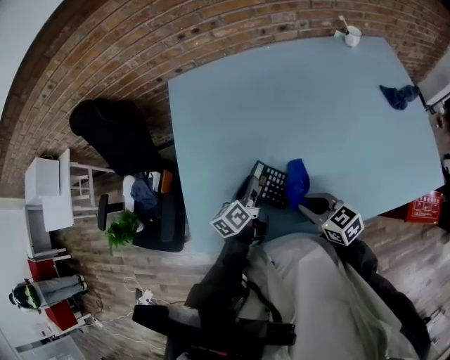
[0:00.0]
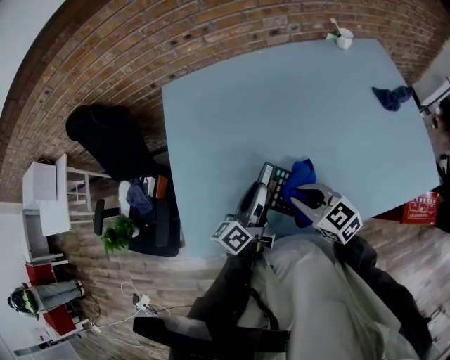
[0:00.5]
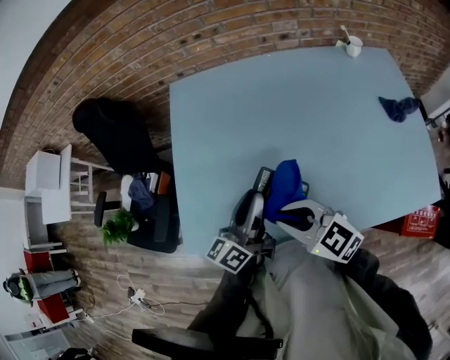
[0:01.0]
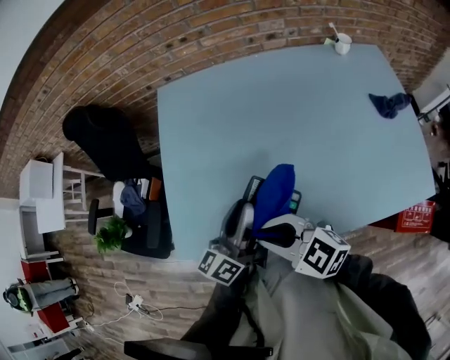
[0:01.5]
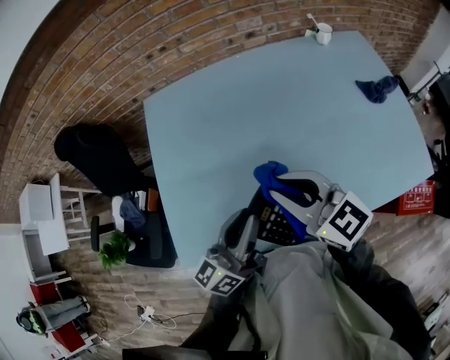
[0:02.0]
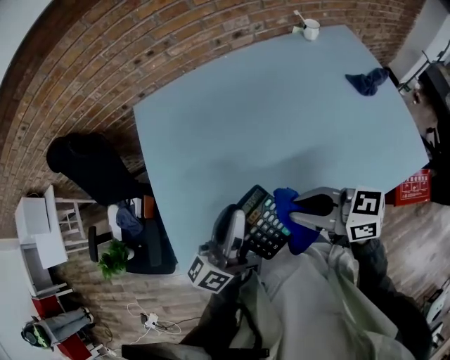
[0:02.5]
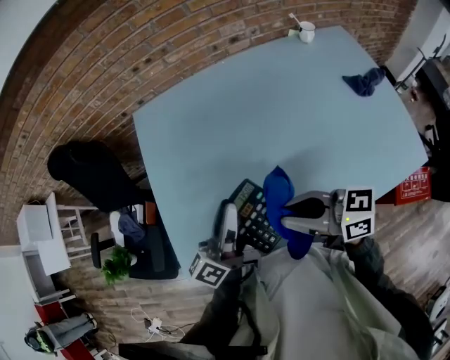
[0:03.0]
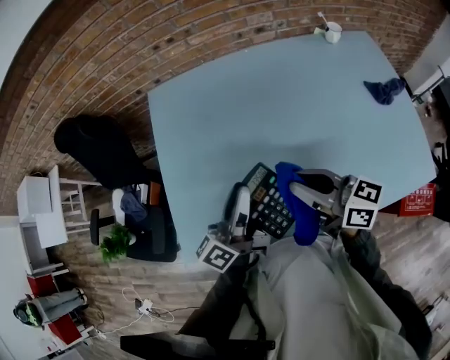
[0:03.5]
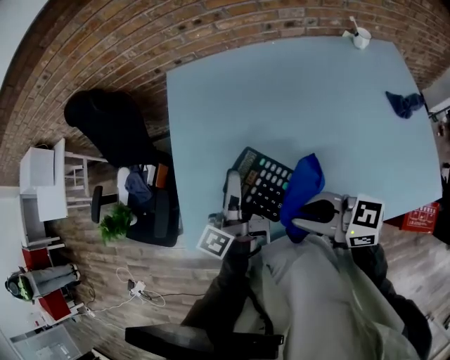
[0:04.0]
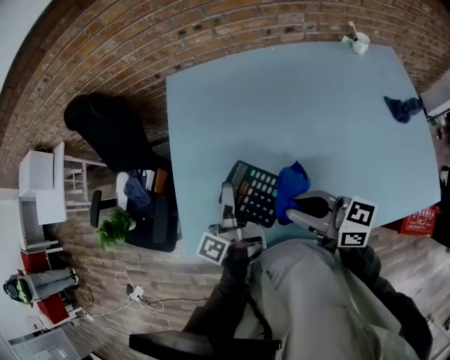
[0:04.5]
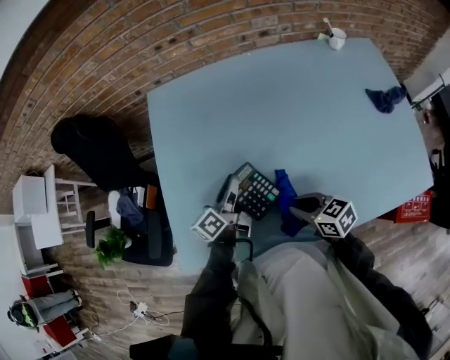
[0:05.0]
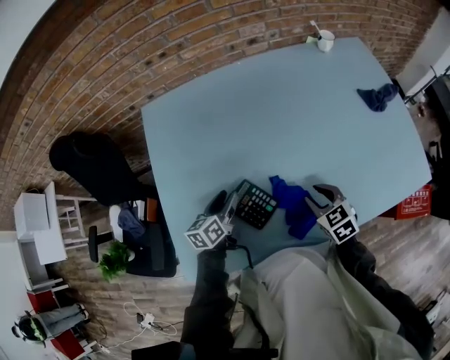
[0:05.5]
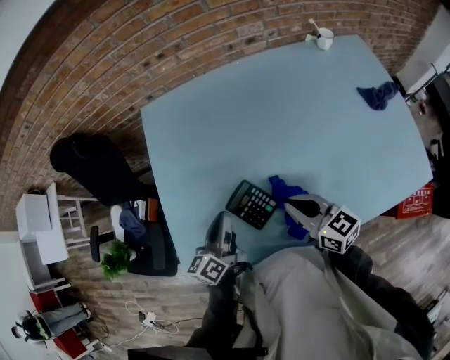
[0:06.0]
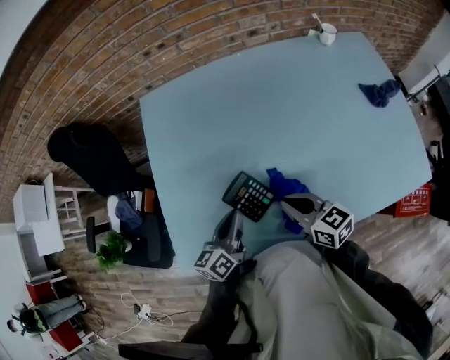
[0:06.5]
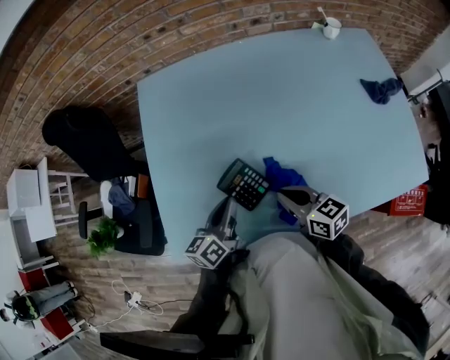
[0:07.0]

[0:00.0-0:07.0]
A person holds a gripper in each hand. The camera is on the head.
0:00.0 to 0:02.0: The right gripper travels upward by roughly 20 cm, and changes its angle by roughly 30 degrees. The left gripper travels upward and backward by about 20 cm, and swivels some 40 degrees.
0:02.0 to 0:03.5: The right gripper reaches some 5 cm backward, then returns, and changes its angle by some 30 degrees, while the left gripper shifts about 5 cm forward, and turns by some 20 degrees.
0:03.5 to 0:05.0: The right gripper heads downward, covering some 20 cm, and angles its fingers downward, by roughly 30 degrees. The left gripper shifts roughly 15 cm downward and forward.
0:05.0 to 0:07.0: The left gripper moves backward, about 10 cm, and opens, then closes again.

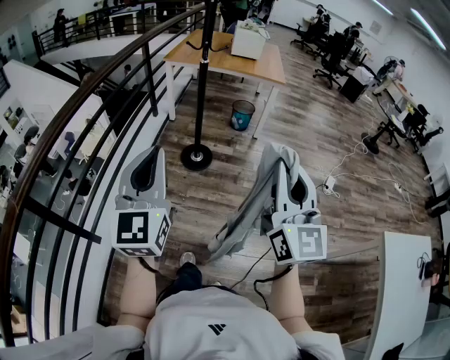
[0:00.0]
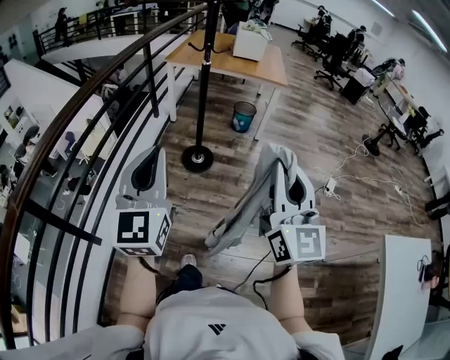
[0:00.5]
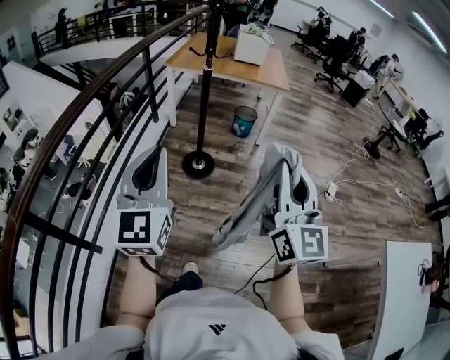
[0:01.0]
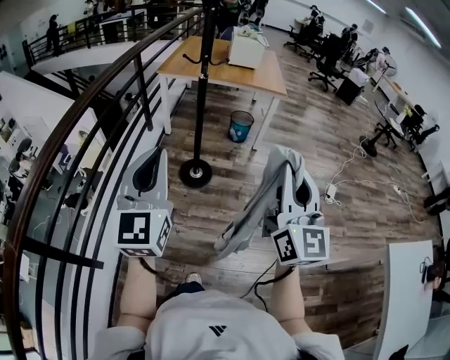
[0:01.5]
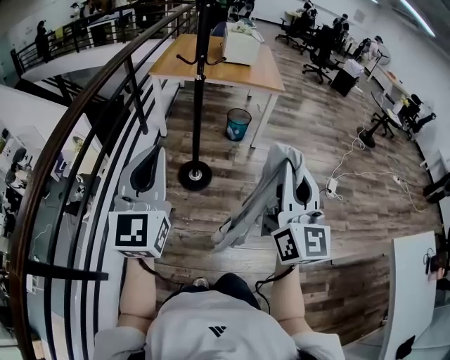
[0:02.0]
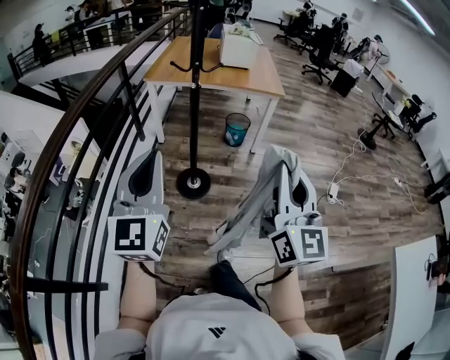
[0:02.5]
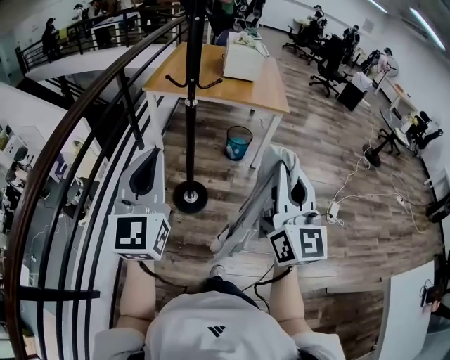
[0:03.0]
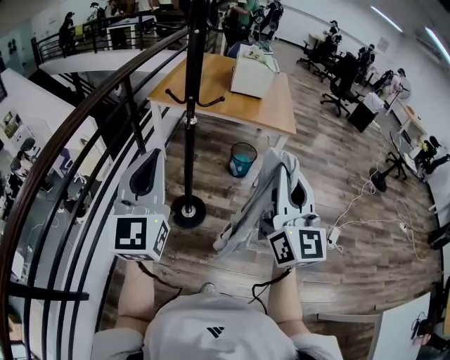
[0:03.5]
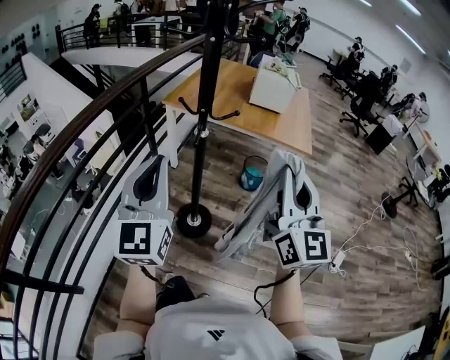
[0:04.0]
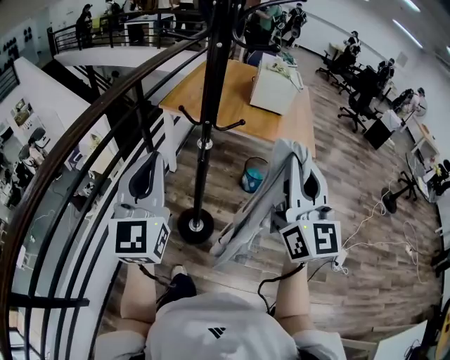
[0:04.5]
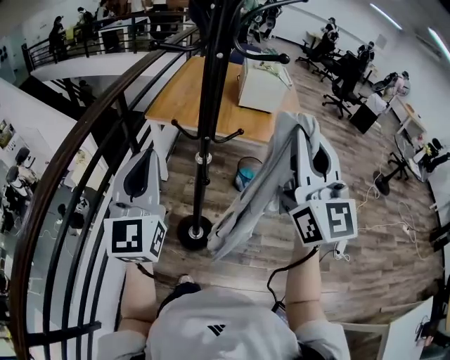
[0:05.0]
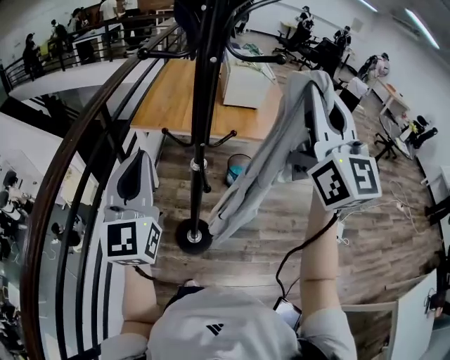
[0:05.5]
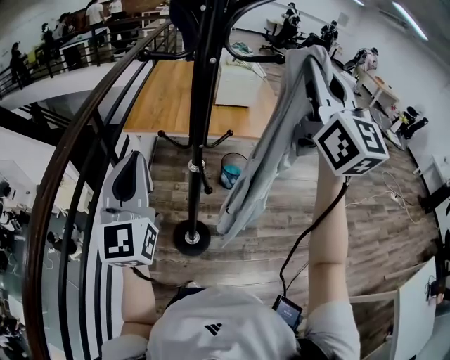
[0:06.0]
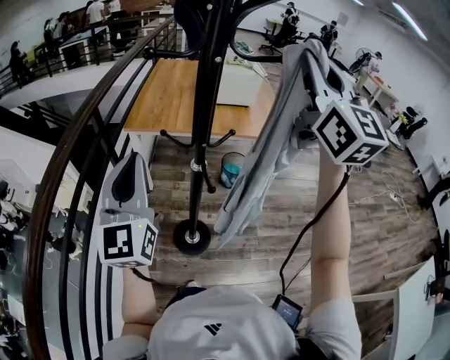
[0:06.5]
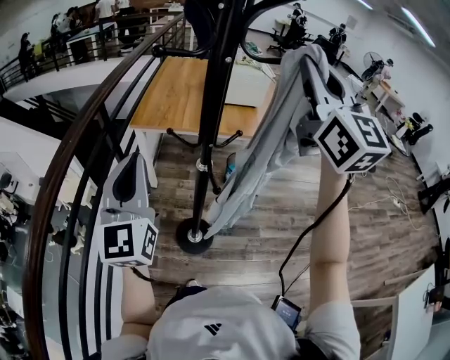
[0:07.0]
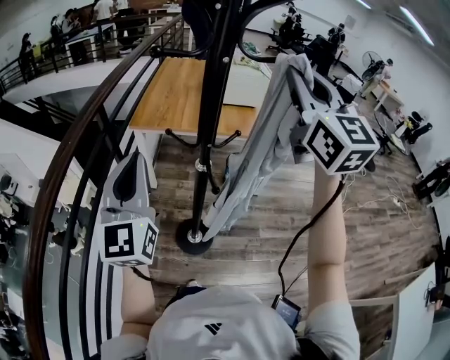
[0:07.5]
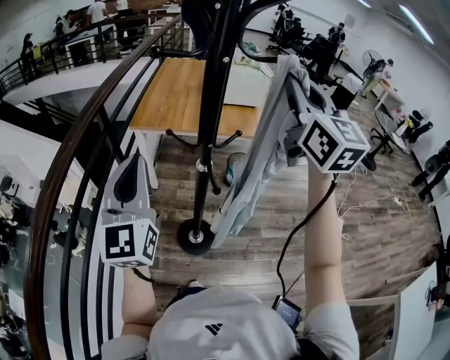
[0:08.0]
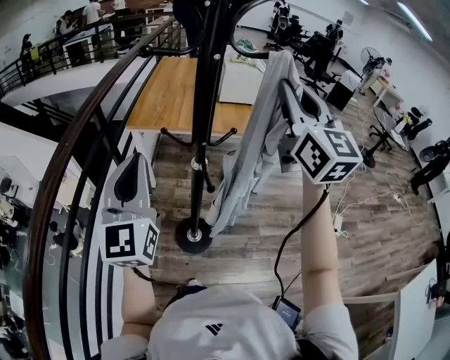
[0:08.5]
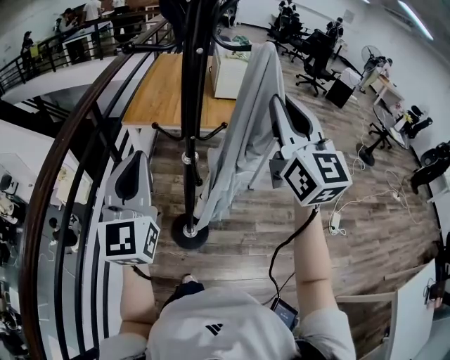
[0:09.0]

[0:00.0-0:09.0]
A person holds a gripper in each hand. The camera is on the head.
0:00.0 to 0:02.0: The two grippers go approximately 20 cm forward.
0:02.0 to 0:04.5: The two grippers go about 35 cm forward.
0:04.5 to 0:07.0: The right gripper moves upward and forward, approximately 20 cm, while the left gripper goes roughly 15 cm forward and to the left.
0:07.0 to 0:09.0: The left gripper is displaced to the right by some 5 cm. The right gripper travels downward by some 10 cm.

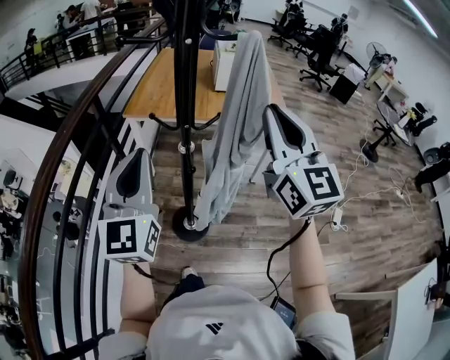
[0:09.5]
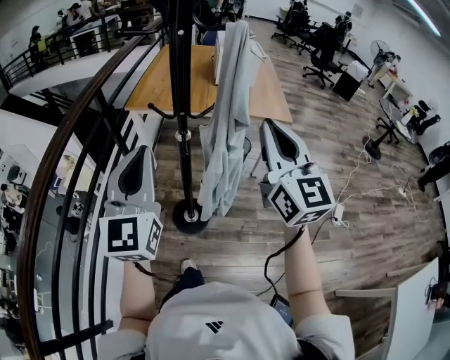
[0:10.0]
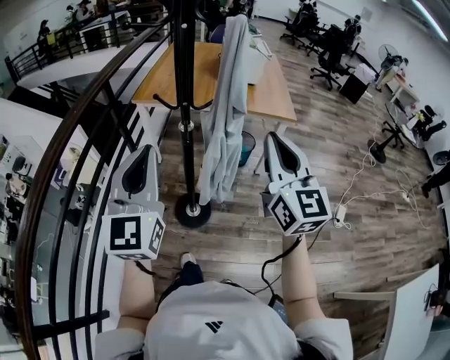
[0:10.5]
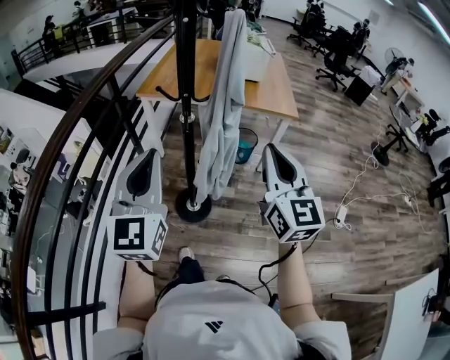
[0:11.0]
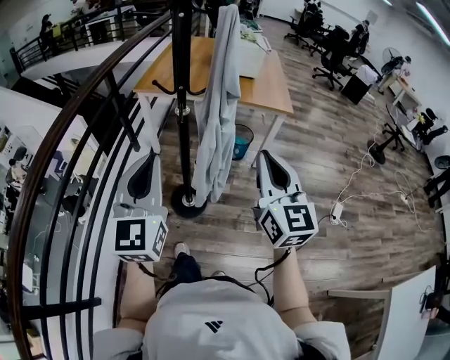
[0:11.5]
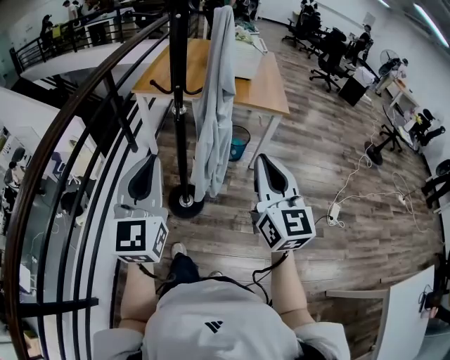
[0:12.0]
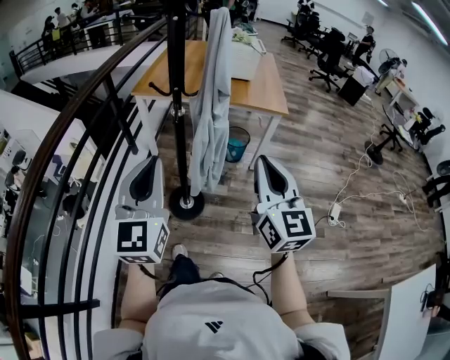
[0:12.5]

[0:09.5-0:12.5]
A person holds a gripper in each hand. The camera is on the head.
0:09.5 to 0:11.0: The left gripper heads backward, covering approximately 10 cm. Meanwhile the right gripper heads backward and downward, covering about 15 cm.
0:11.0 to 0:12.5: The left gripper ends up approximately 5 cm from where it was, while the right gripper goes approximately 5 cm backward.

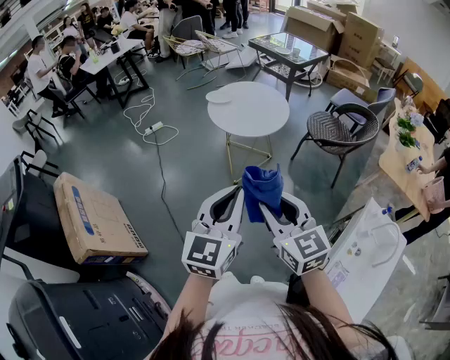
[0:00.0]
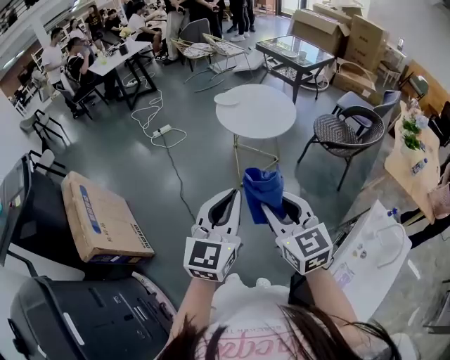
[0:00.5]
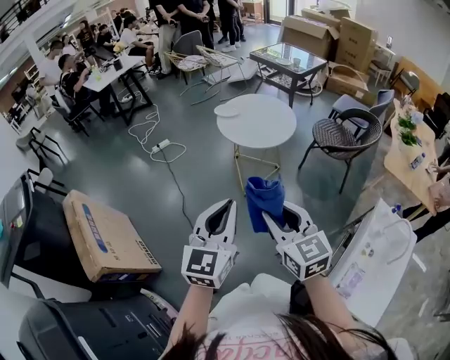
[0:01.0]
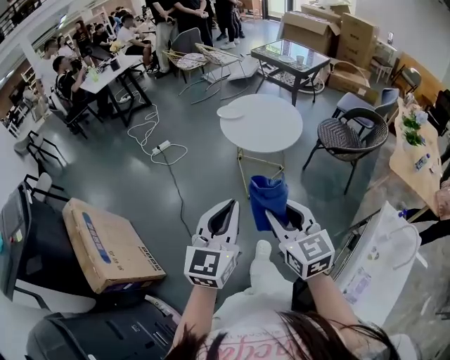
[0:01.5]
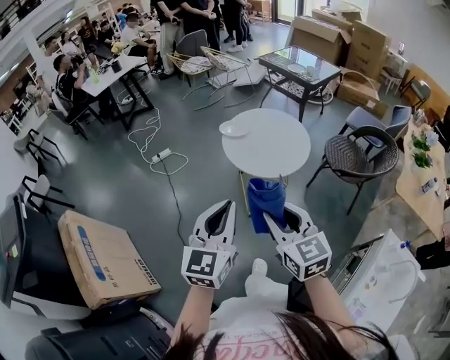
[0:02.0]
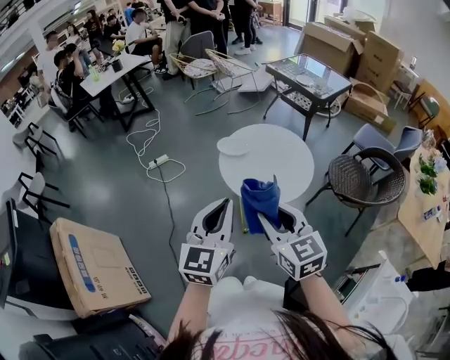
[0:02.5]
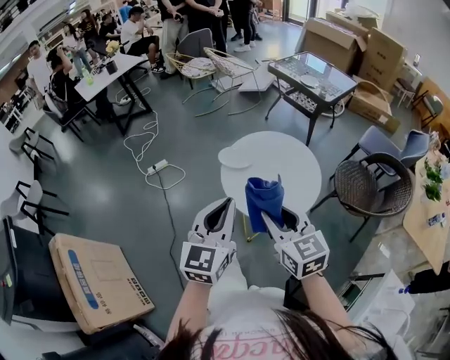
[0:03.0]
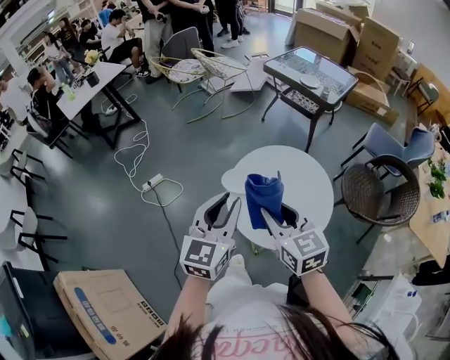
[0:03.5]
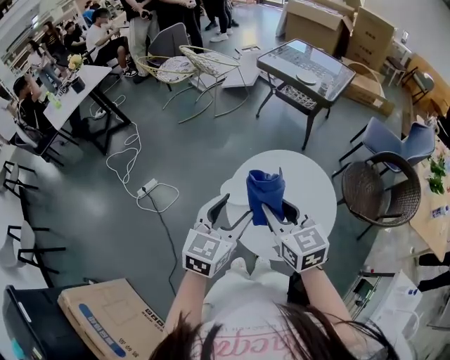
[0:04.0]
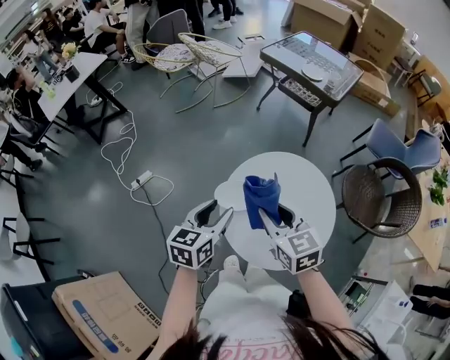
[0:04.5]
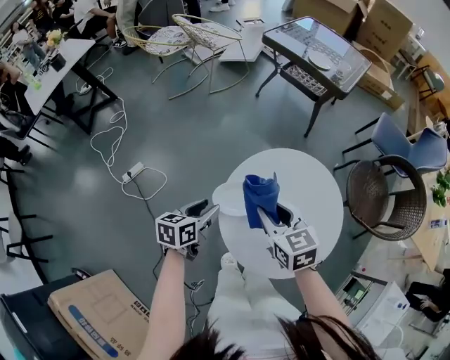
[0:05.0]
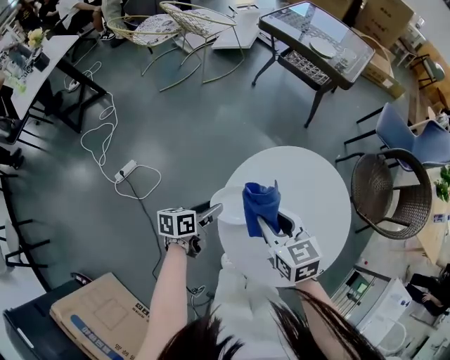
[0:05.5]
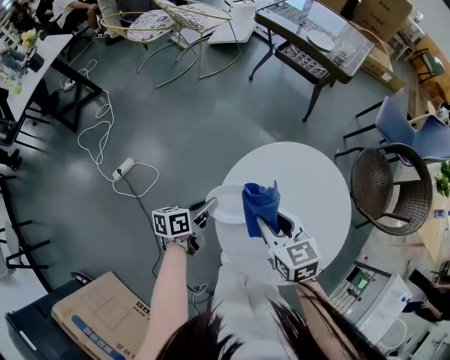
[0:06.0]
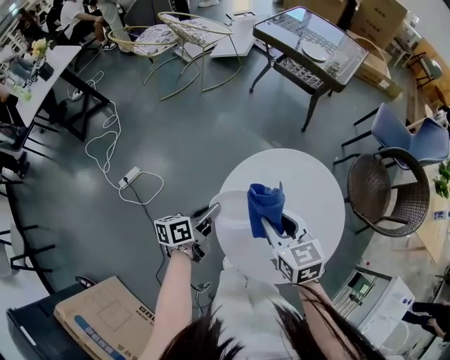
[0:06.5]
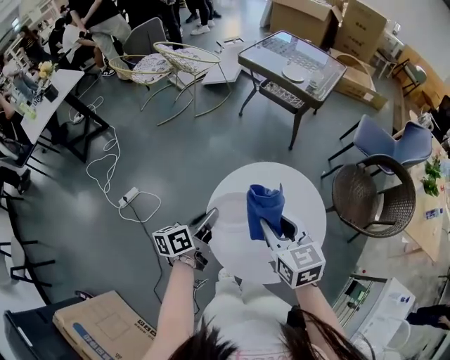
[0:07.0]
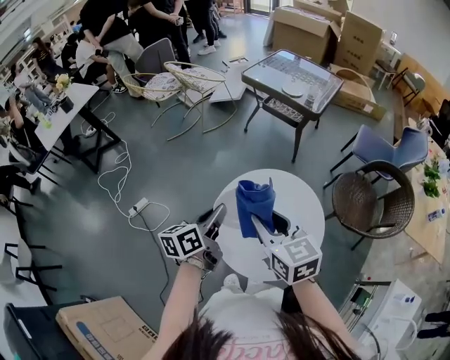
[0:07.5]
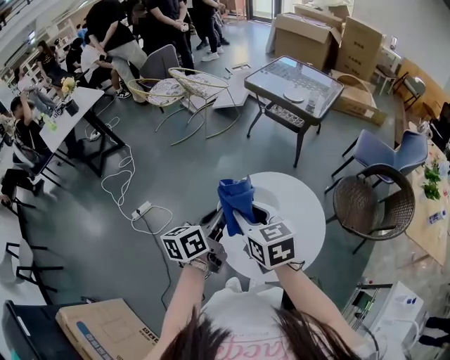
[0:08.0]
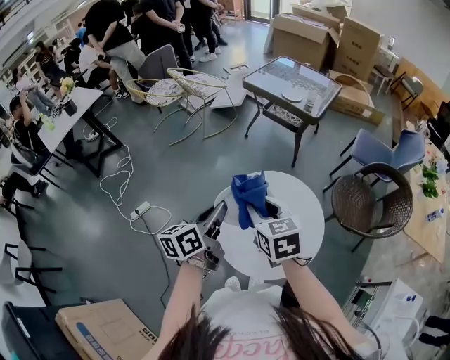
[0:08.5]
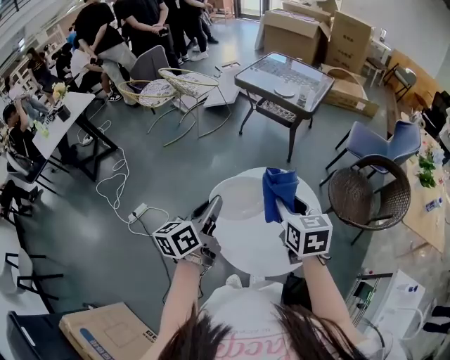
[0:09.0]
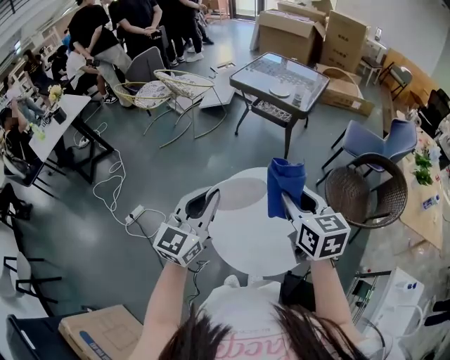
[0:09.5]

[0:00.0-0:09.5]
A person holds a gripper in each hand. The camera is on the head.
0:00.0 to 0:02.0: The left gripper is displaced forward and to the left by approximately 20 cm. Meanwhile the right gripper is displaced forward by approximately 20 cm.
0:02.0 to 0:04.0: Both grippers are carried forward, roughly 50 cm. The left gripper turns by about 20 degrees, and opens.
0:04.0 to 0:05.5: The right gripper is displaced downward and forward by about 20 cm, while the left gripper shifts roughly 30 cm downward, and twists about 50 degrees counterclockwise, seen from behind.
0:05.5 to 0:07.5: The grippers both shift upward by about 25 cm. The left gripper changes its angle by about 20 degrees, and closes up.
0:07.5 to 0:09.5: The right gripper travels to the right by some 10 cm. Meanwhile the left gripper is displaced upward by about 10 cm, and twists approximately 50 degrees clockwise, seen from behind.
